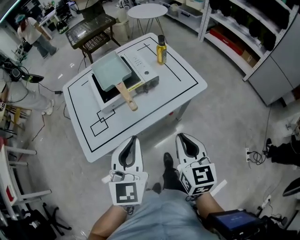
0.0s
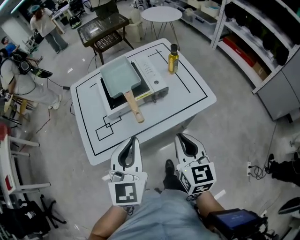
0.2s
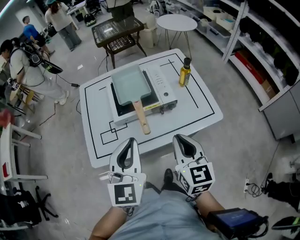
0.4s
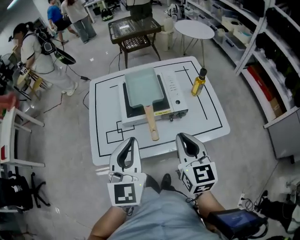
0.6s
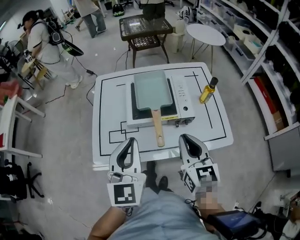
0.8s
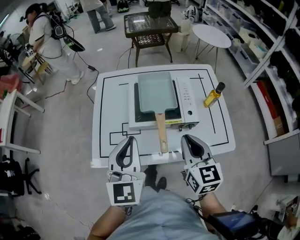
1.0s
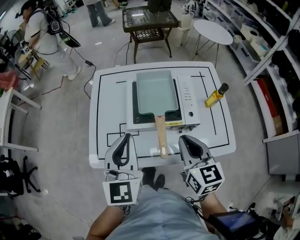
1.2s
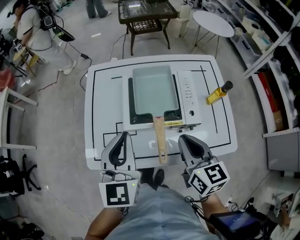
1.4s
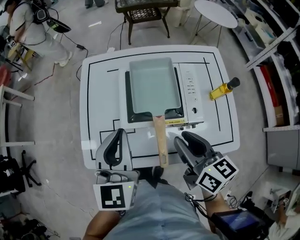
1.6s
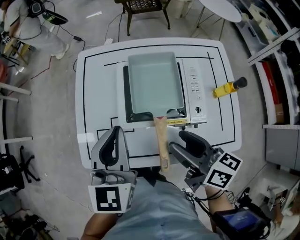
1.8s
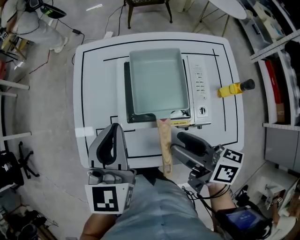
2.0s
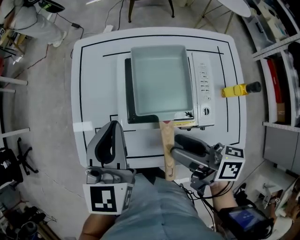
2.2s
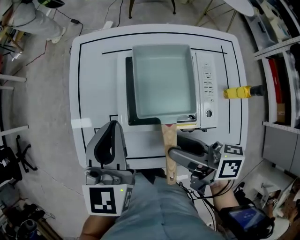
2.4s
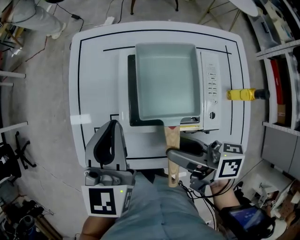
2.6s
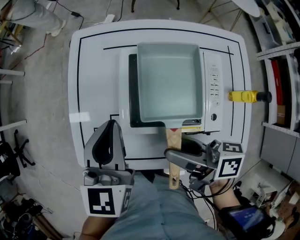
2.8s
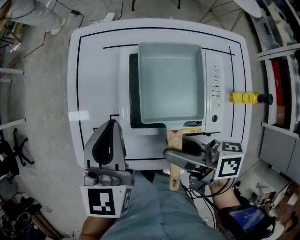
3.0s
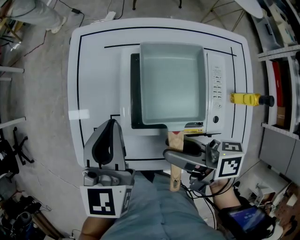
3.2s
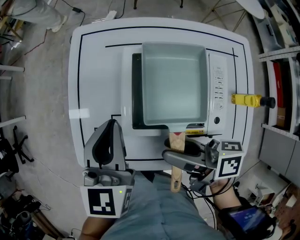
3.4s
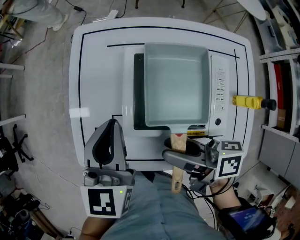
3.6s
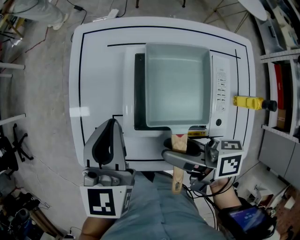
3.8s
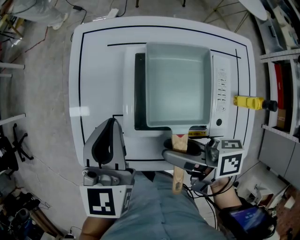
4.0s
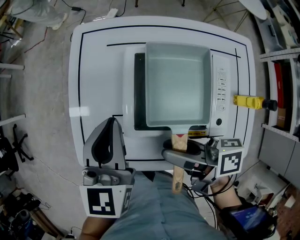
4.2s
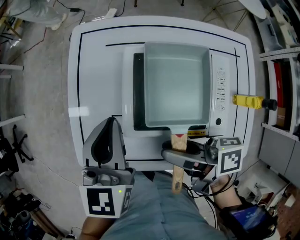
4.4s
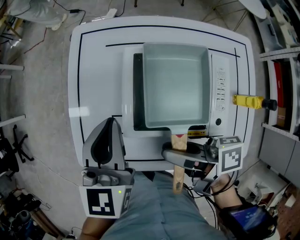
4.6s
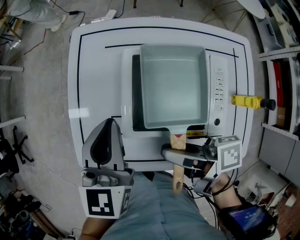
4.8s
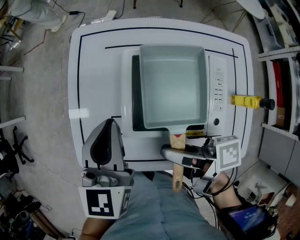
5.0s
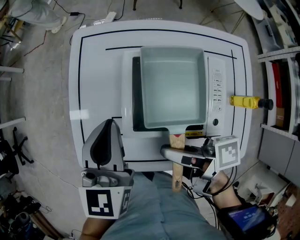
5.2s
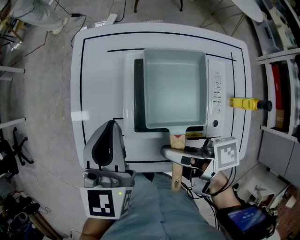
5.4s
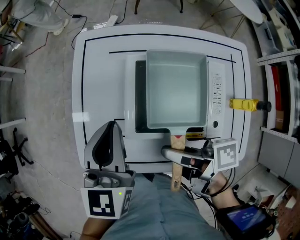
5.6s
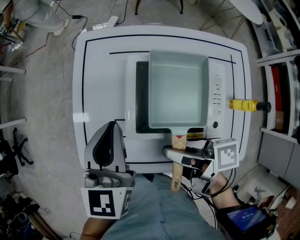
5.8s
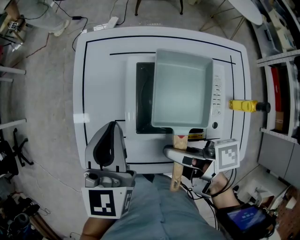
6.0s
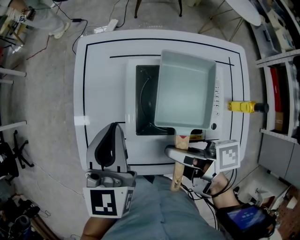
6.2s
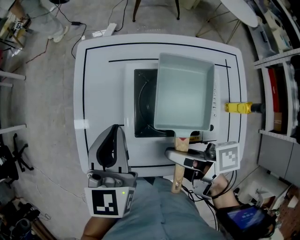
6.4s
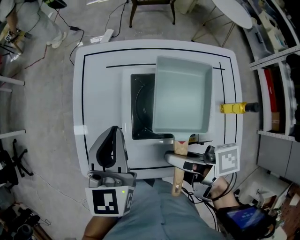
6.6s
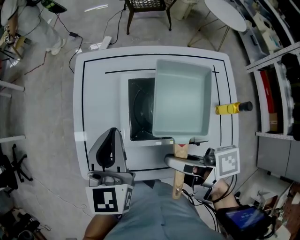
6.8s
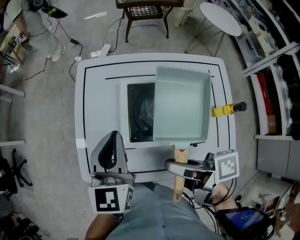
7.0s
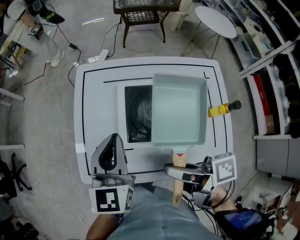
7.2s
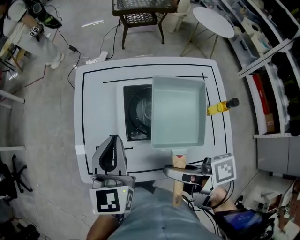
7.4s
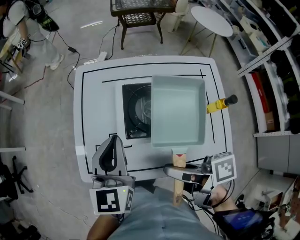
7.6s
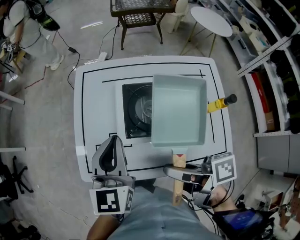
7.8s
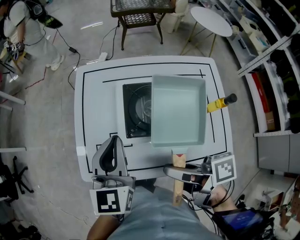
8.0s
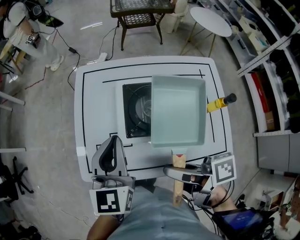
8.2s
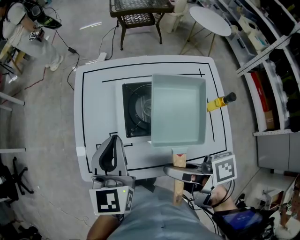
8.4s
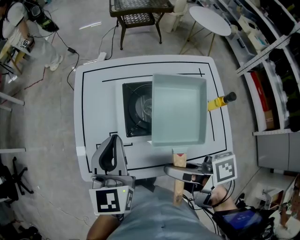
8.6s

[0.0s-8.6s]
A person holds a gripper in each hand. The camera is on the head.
0.0s to 1.4s: The right gripper moves some 25 cm, and rotates approximately 30 degrees. The left gripper ends up roughly 25 cm from where it was, and rotates about 30 degrees.
1.4s to 2.8s: The left gripper travels forward and downward by roughly 15 cm, while the right gripper travels forward, to the left and downward by roughly 10 cm, rotates about 60 degrees, and opens up.
2.8s to 4.4s: There are only small adjustments of the grippers.
4.4s to 5.8s: The grippers move only a little.
5.8s to 7.2s: The right gripper is displaced upward and backward by roughly 10 cm. Meanwhile the left gripper moves roughly 5 cm.
7.2s to 8.6s: The grippers stay close to where they were, moving slightly.

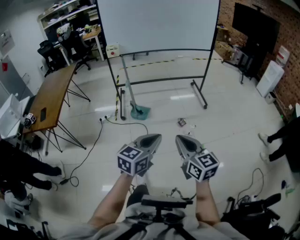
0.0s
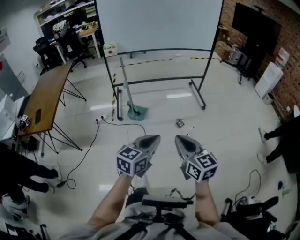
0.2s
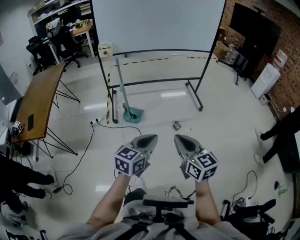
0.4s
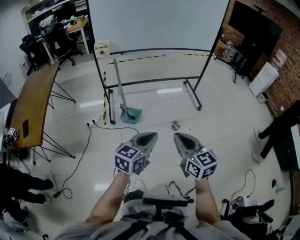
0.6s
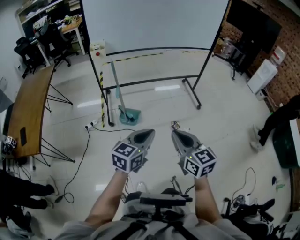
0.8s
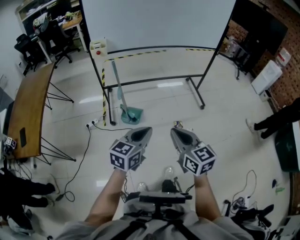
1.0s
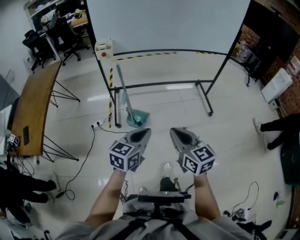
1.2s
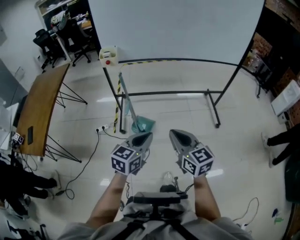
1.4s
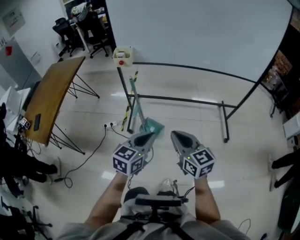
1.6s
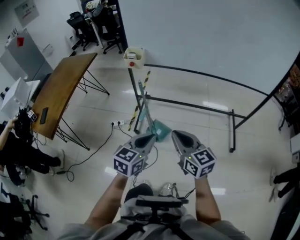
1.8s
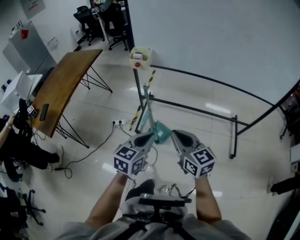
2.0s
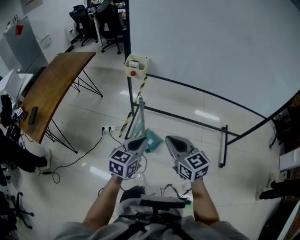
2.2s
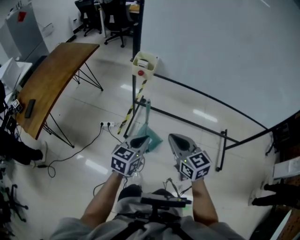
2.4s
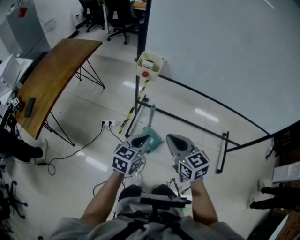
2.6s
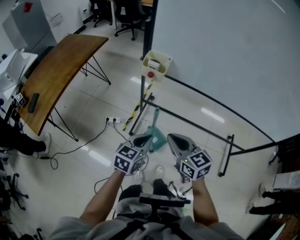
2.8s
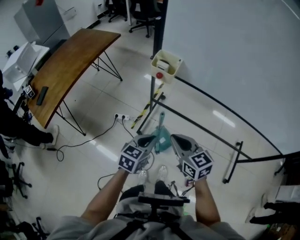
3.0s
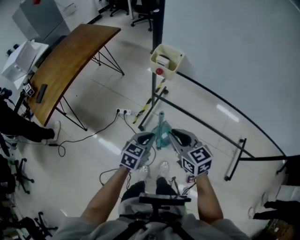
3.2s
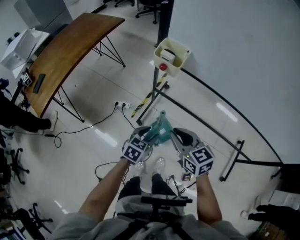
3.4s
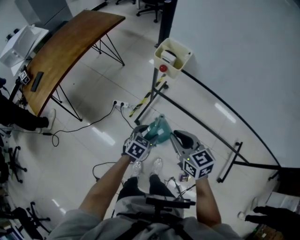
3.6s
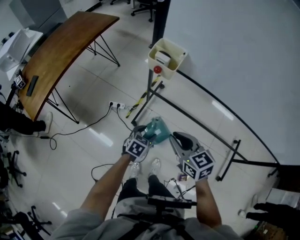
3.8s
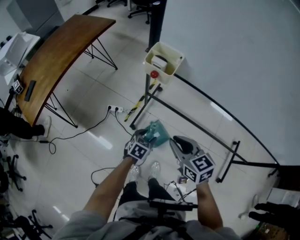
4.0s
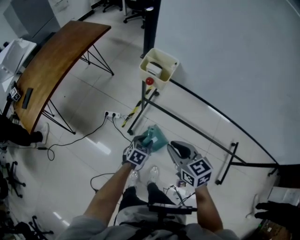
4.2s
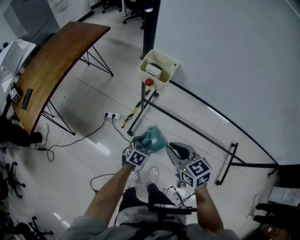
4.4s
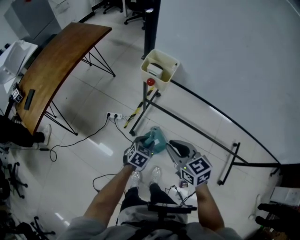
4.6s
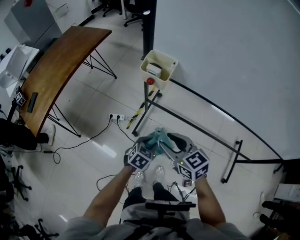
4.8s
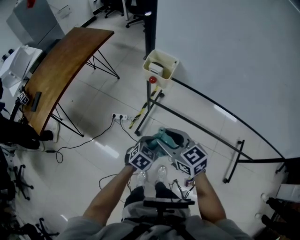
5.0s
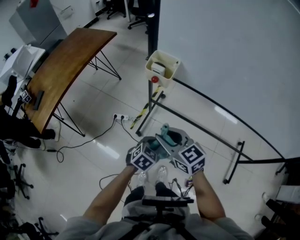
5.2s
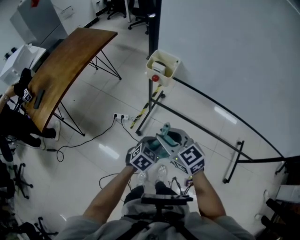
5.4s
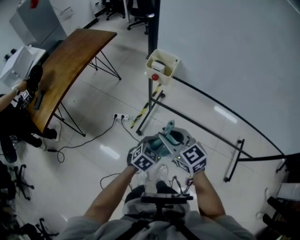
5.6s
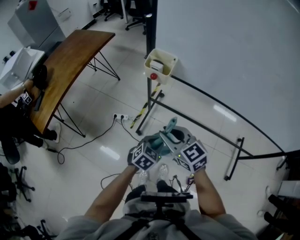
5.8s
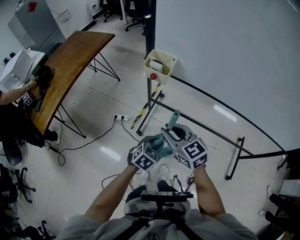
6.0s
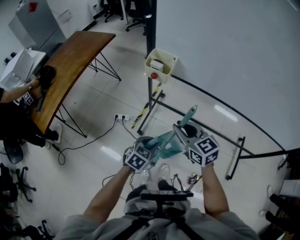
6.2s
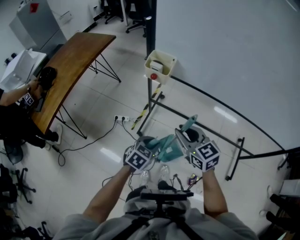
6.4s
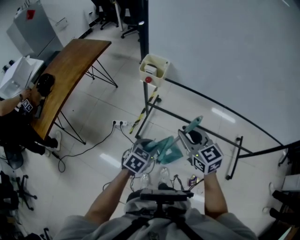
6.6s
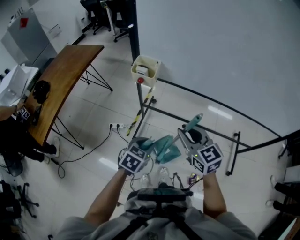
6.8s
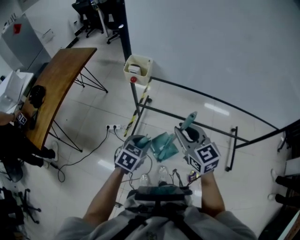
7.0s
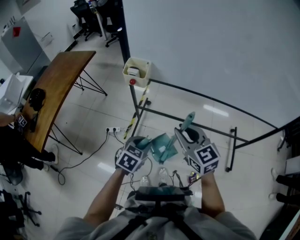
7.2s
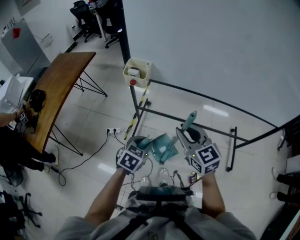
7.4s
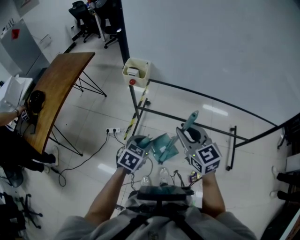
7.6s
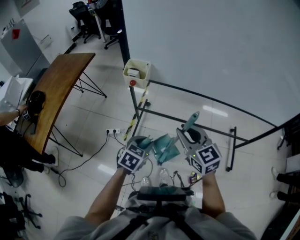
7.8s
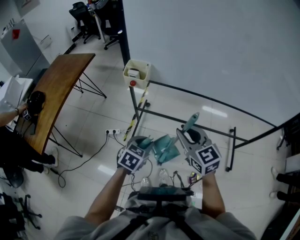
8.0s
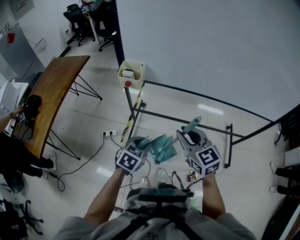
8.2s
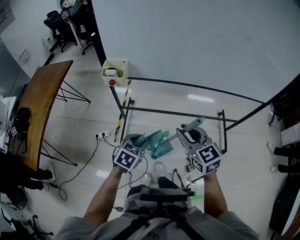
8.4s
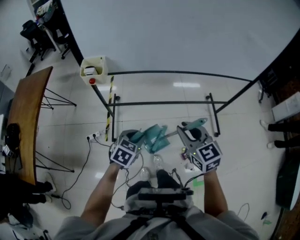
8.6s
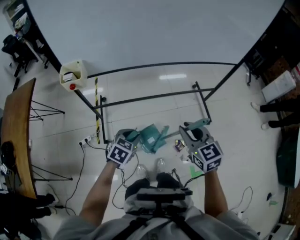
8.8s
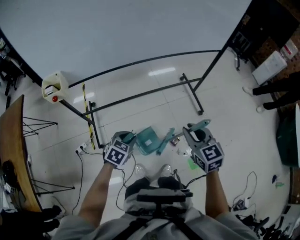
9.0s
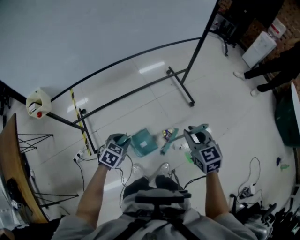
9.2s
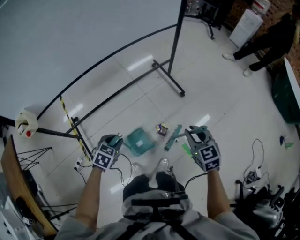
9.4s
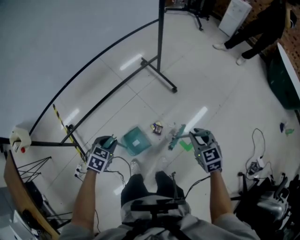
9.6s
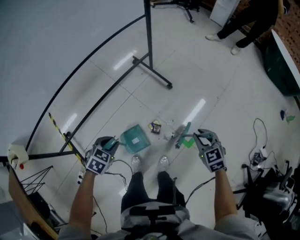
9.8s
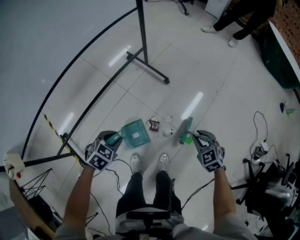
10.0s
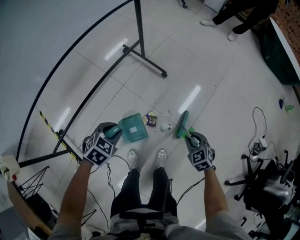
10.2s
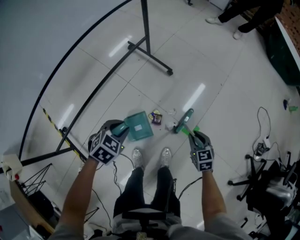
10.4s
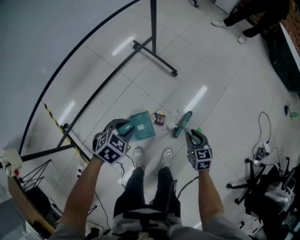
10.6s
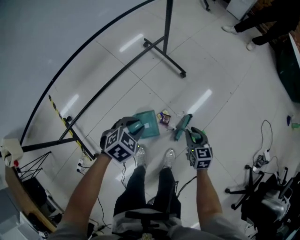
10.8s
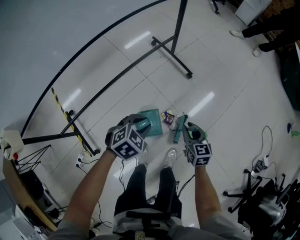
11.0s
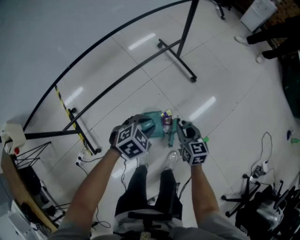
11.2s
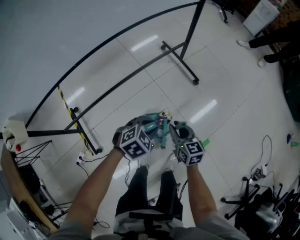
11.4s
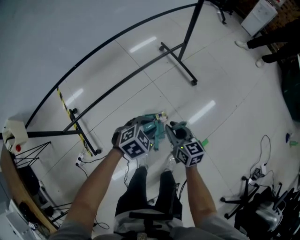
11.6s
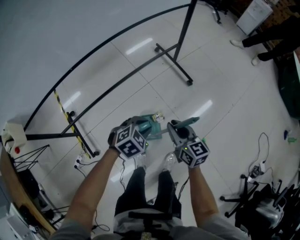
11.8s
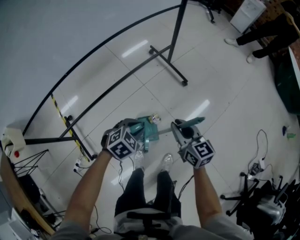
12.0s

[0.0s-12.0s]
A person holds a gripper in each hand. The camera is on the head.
0.0s to 1.6s: Both grippers are carried forward, about 40 cm.
1.6s to 3.0s: The left gripper goes some 25 cm forward and downward, and turns by roughly 20 degrees; the right gripper travels forward by about 25 cm, and changes its angle by about 30 degrees.
3.0s to 4.4s: The left gripper shifts approximately 20 cm downward and forward, rotates roughly 20 degrees, and opens, while the right gripper shifts by some 5 cm.
4.4s to 6.0s: The right gripper travels upward by about 5 cm, while the left gripper moves upward and backward, some 10 cm.
6.0s to 7.6s: The right gripper shifts about 10 cm to the right and upward, and rotates about 20 degrees. The left gripper moves upward, roughly 5 cm.
7.6s to 9.0s: The left gripper ends up about 15 cm from where it was, and changes its angle by approximately 30 degrees, while the right gripper moves roughly 30 cm, and rotates approximately 40 degrees.
9.0s to 10.4s: The right gripper travels downward by about 30 cm, and swivels roughly 40 degrees. Meanwhile the left gripper changes place by roughly 25 cm, and changes its angle by some 40 degrees.
10.4s to 12.0s: The right gripper travels to the left and upward by approximately 25 cm, and swivels roughly 30 degrees.

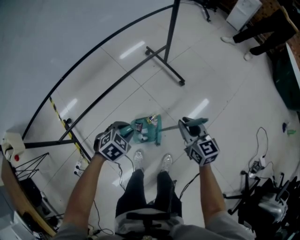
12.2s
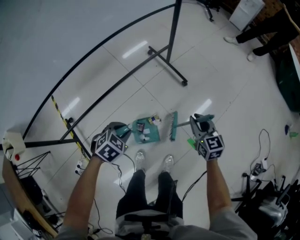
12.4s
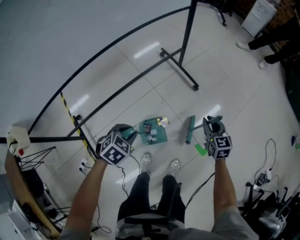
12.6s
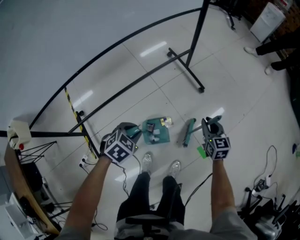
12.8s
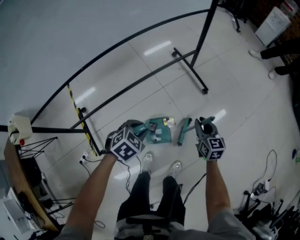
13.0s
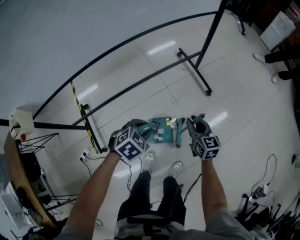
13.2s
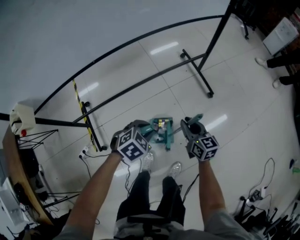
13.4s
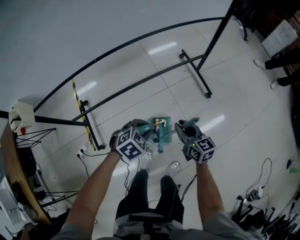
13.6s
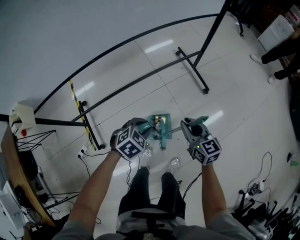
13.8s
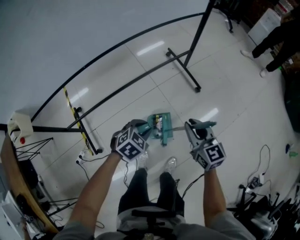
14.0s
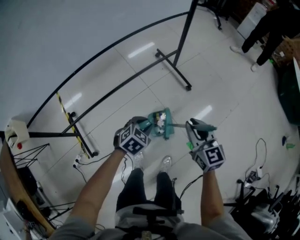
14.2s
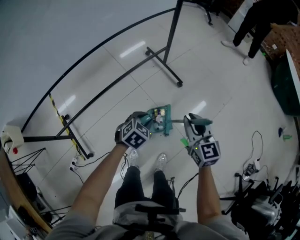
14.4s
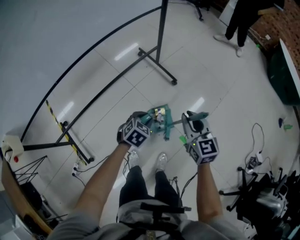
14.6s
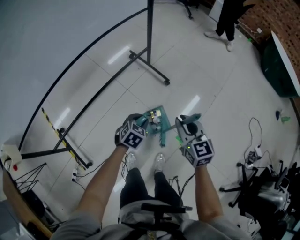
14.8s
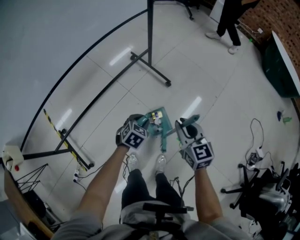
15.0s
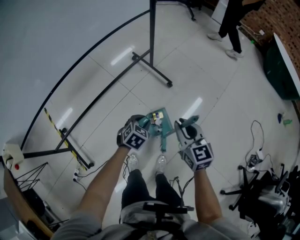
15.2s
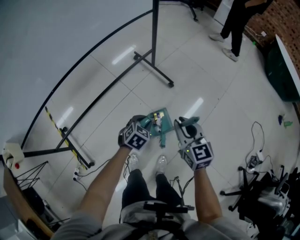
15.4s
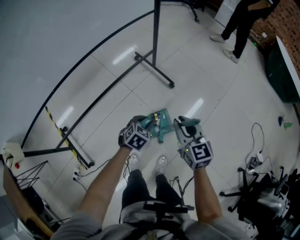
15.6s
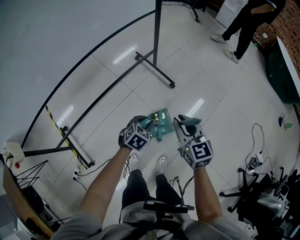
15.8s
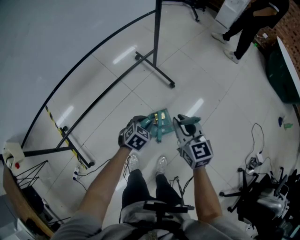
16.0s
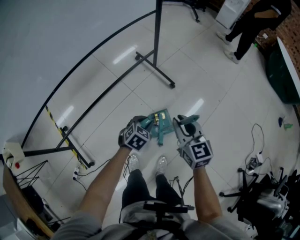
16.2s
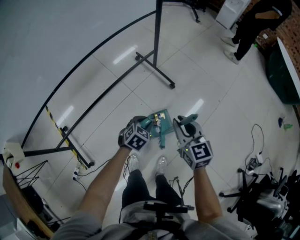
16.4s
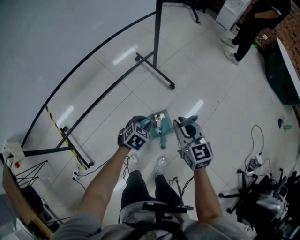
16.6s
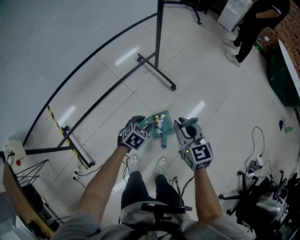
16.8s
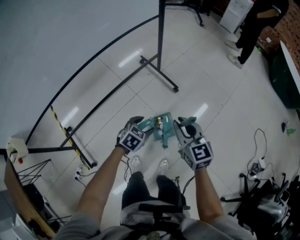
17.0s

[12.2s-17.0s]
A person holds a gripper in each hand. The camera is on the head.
12.2s to 13.8s: The right gripper goes approximately 10 cm to the left.
13.8s to 15.4s: The right gripper travels to the right and upward by some 15 cm, and turns by some 20 degrees. The left gripper is displaced to the right and forward by some 15 cm.
15.4s to 17.0s: The left gripper opens.
